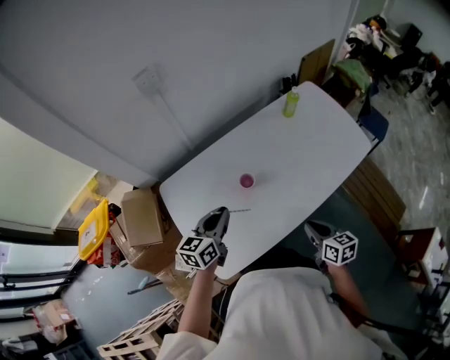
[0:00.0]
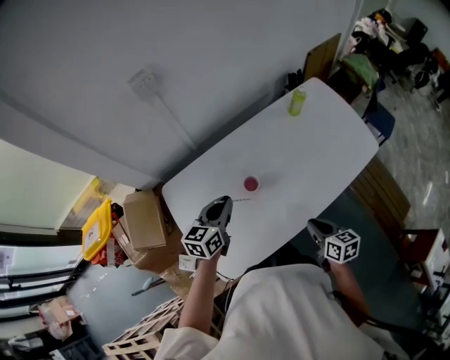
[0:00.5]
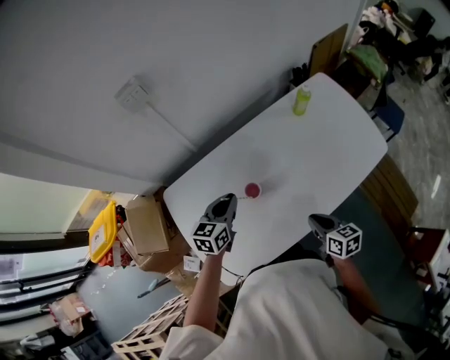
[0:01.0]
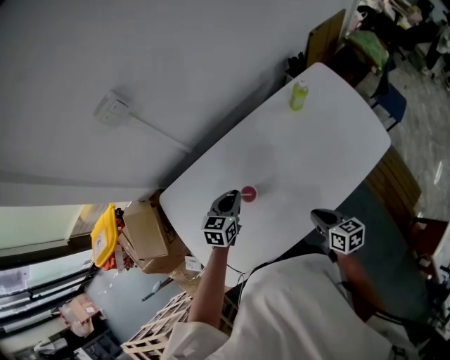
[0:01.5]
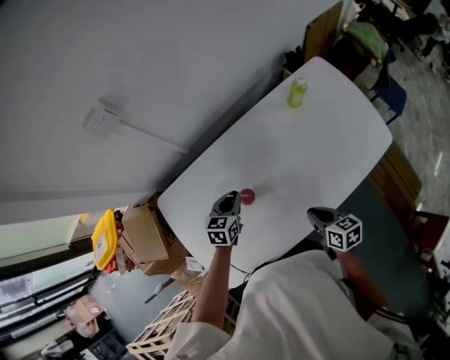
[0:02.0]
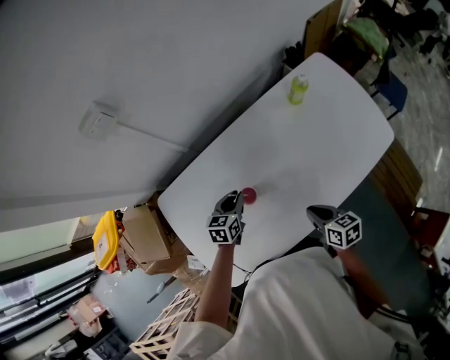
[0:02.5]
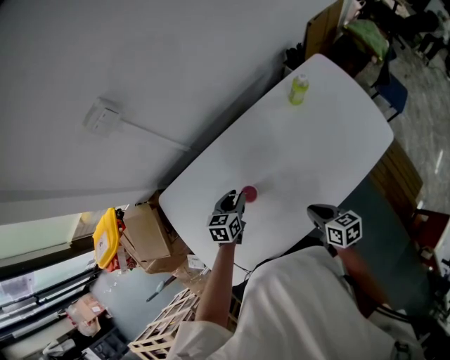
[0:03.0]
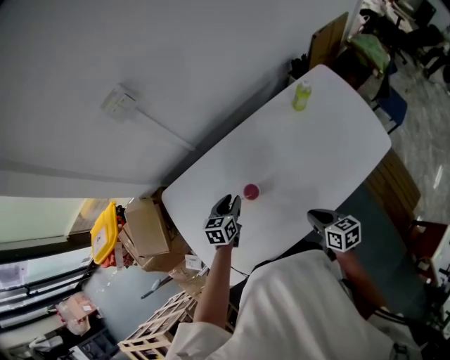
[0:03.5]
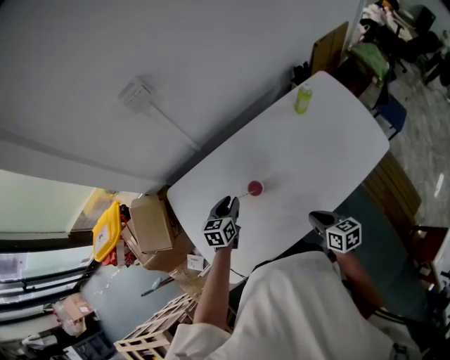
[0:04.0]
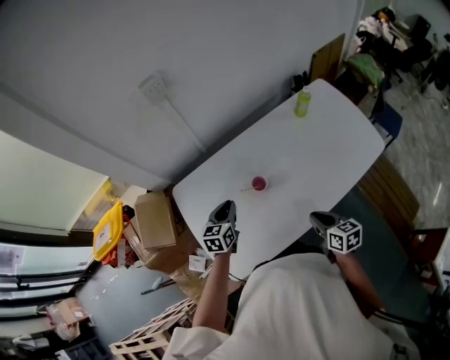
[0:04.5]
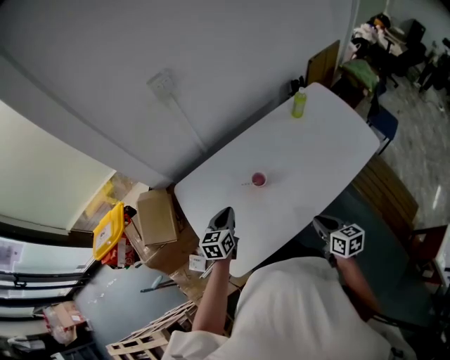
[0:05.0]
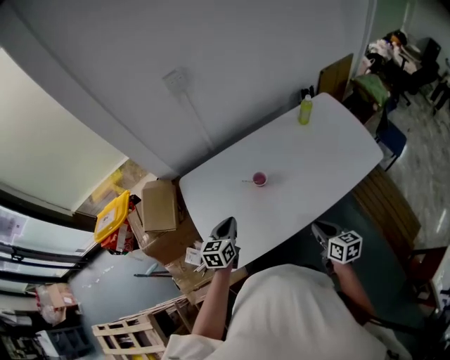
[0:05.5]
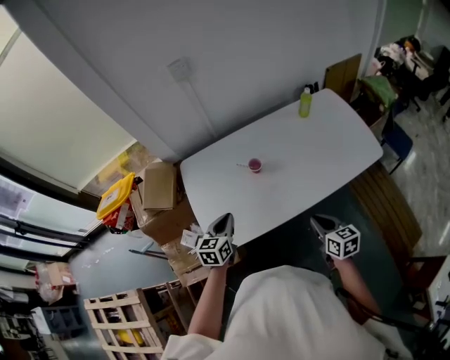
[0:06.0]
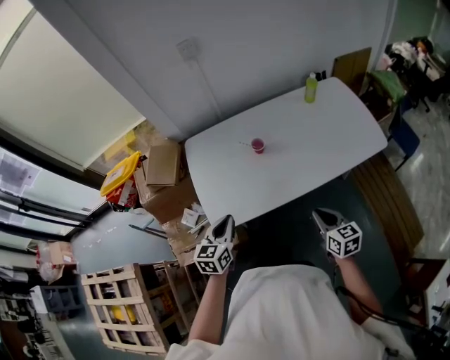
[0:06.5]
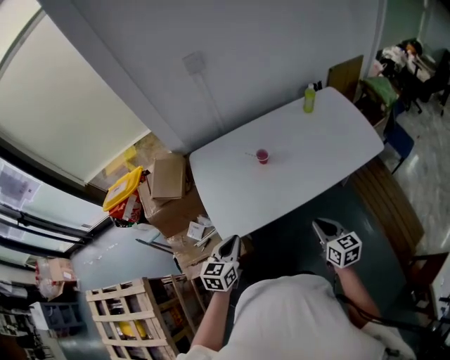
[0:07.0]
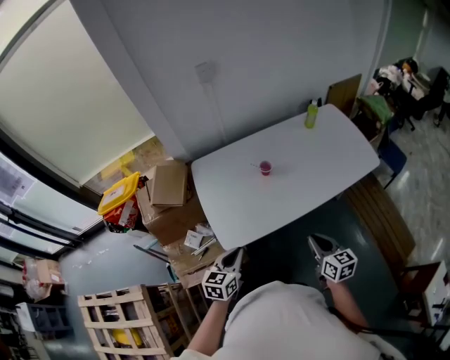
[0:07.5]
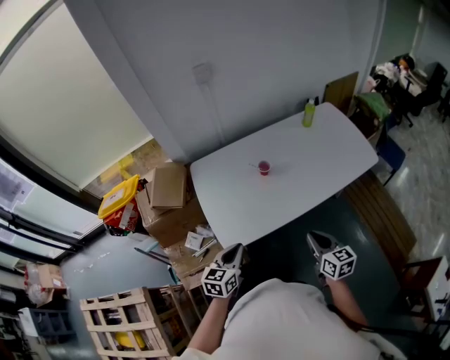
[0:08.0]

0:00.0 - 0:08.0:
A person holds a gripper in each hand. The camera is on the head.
0:00.0 - 0:02.0: The left gripper goes about 20 cm downward, forward and to the right, and changes its angle by about 20 degrees. The right gripper is displaced forward and downward by about 15 cm.
0:02.0 - 0:04.0: The left gripper heads to the left, covering about 5 cm; the right gripper changes place by approximately 5 cm.
0:04.0 - 0:06.0: The left gripper travels backward by about 25 cm, and closes. The right gripper moves backward, roughly 15 cm.
0:06.0 - 0:08.0: The left gripper is displaced backward by roughly 15 cm, while the right gripper moves to the left and backward, approximately 10 cm.

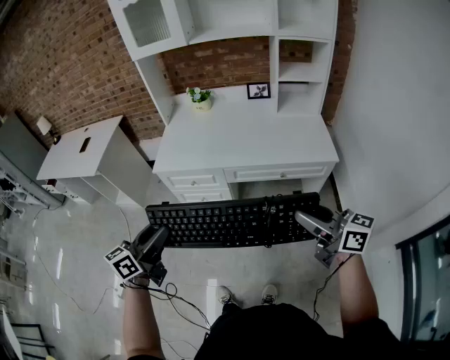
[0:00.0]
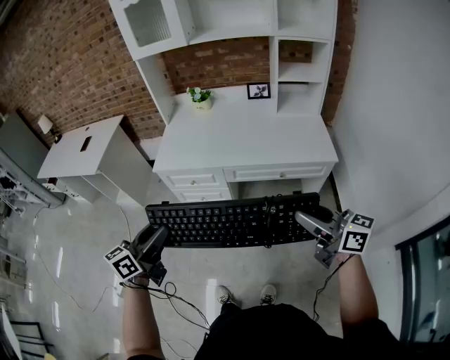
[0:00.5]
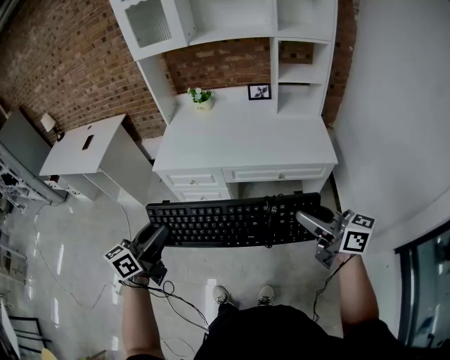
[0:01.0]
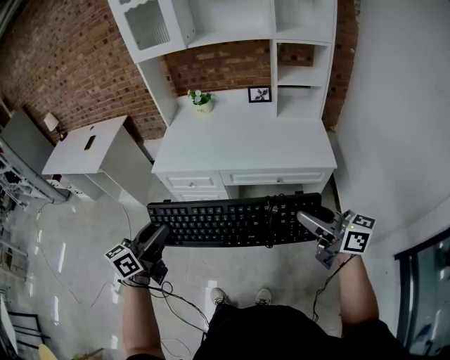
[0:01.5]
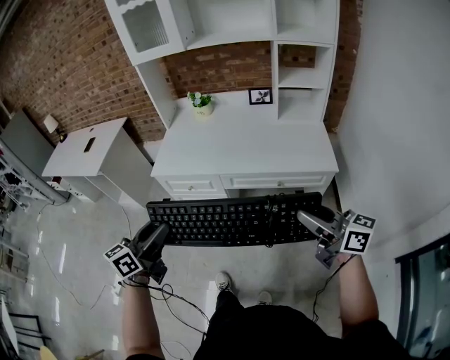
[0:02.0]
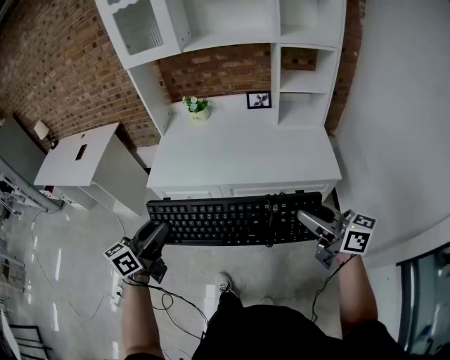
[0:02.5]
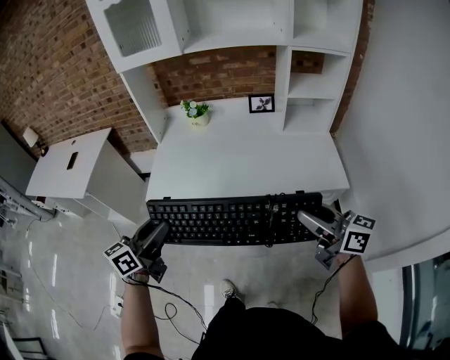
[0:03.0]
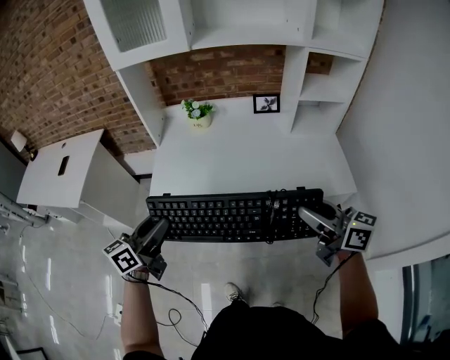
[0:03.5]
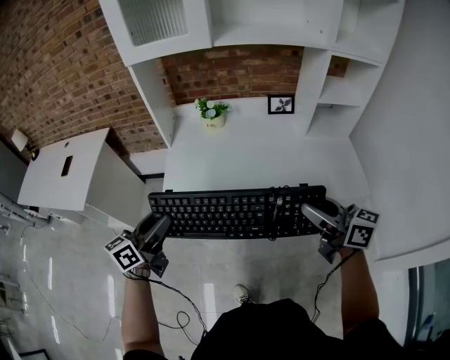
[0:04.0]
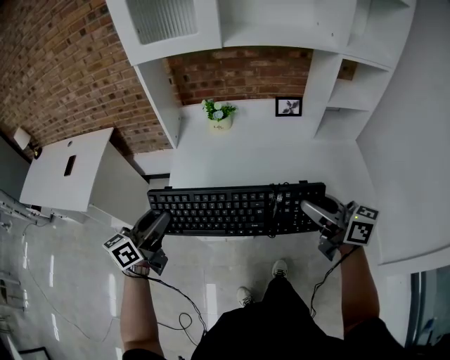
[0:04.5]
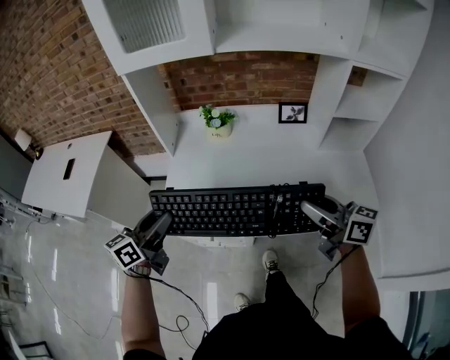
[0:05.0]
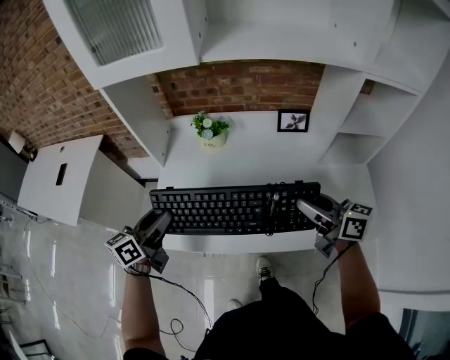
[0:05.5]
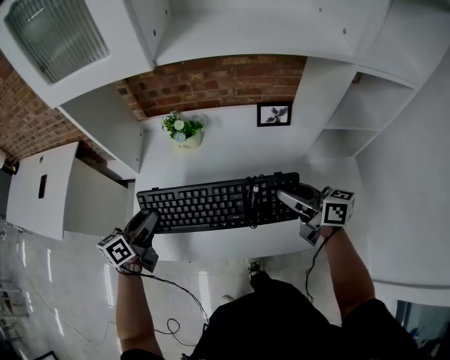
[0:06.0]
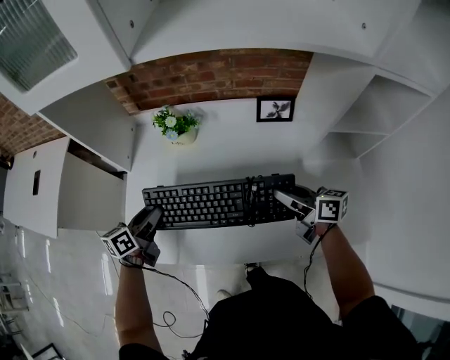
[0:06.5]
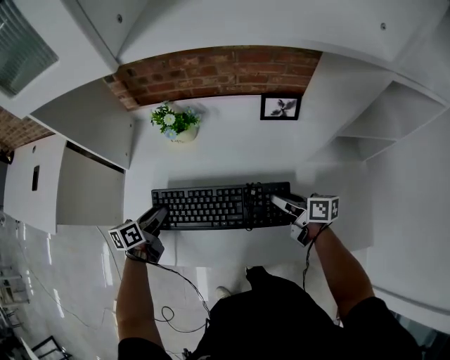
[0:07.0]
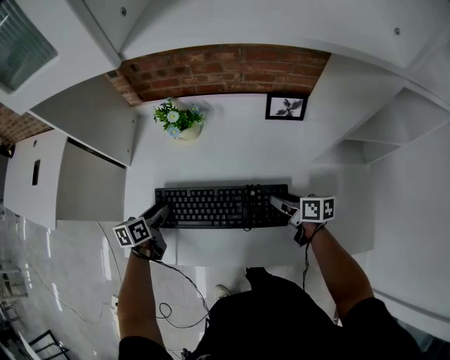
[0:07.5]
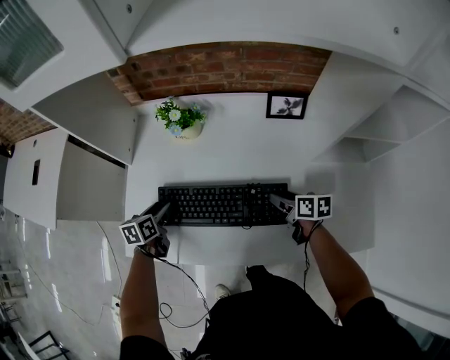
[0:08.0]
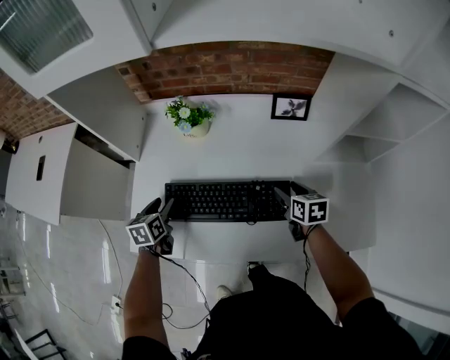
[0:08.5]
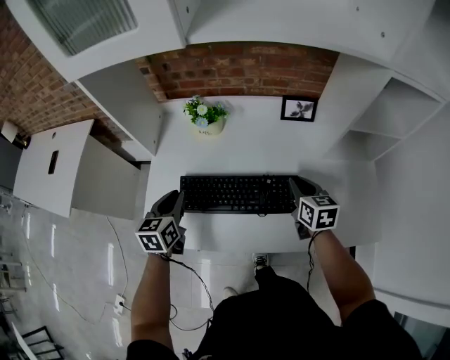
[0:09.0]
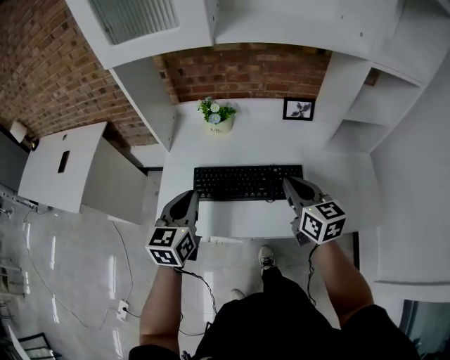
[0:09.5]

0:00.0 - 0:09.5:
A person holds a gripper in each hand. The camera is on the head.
0:00.0 - 0:02.0: The two grippers keep their place.
0:02.0 - 0:04.0: The two grippers go approximately 35 cm forward and to the left.
0:04.0 - 0:05.5: Both grippers move forward, about 20 cm.
0:05.5 - 0:07.5: Both grippers move downward, about 20 cm. The left gripper rotates some 30 degrees. The right gripper turns by roughly 30 degrees.
0:07.5 - 0:09.5: The right gripper shifts some 25 cm upward, to the left and backward, turns by approximately 40 degrees, and closes its fingers. The left gripper travels upward and backward by some 25 cm, changes its angle by some 40 degrees, and closes its fingers.

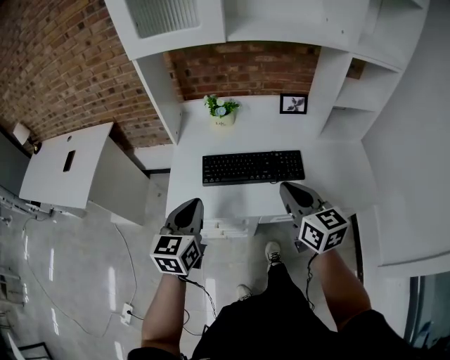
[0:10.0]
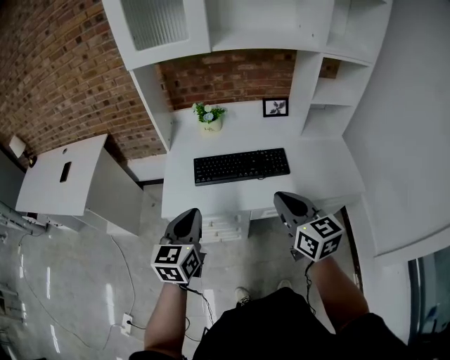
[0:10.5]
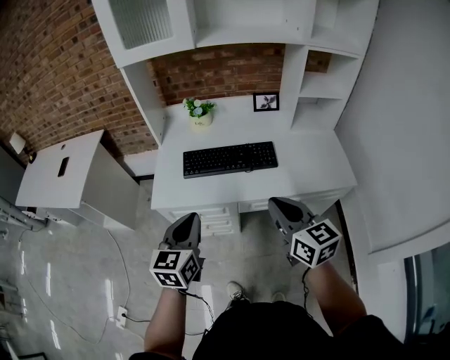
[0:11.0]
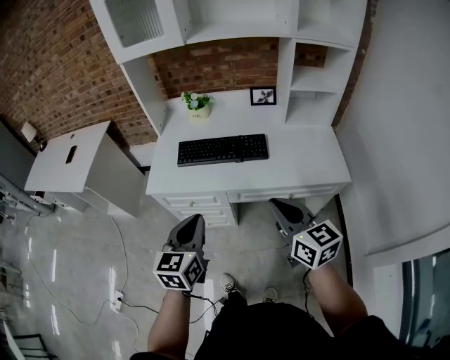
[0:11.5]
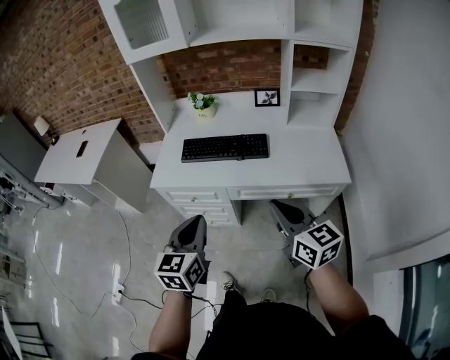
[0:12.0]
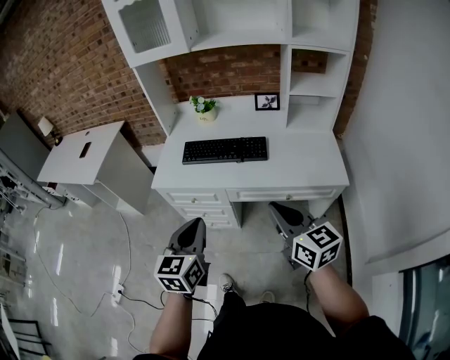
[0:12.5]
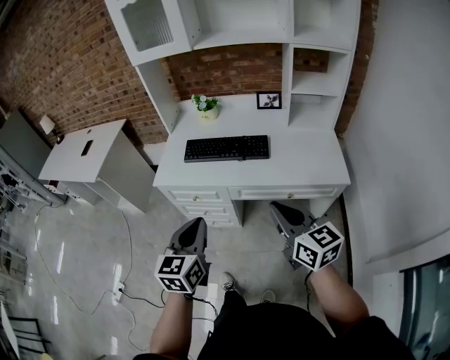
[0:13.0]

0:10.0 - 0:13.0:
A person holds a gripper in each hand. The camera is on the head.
0:10.0 - 0:11.5: Both grippers travel together backward and to the right, approximately 25 cm.
0:11.5 - 0:13.0: Both grippers travel together backward, about 5 cm.

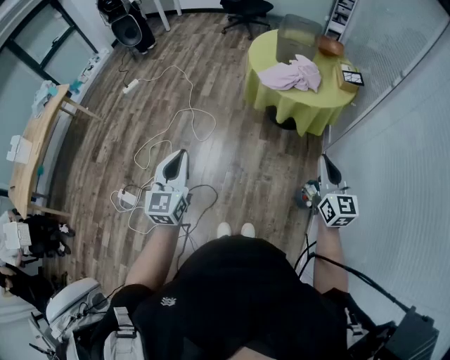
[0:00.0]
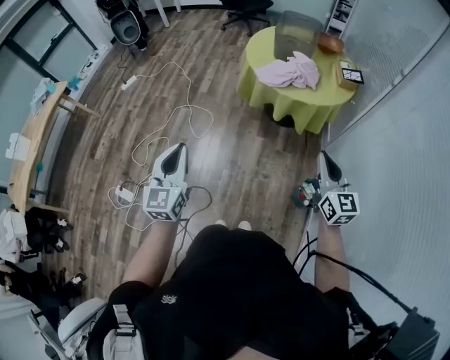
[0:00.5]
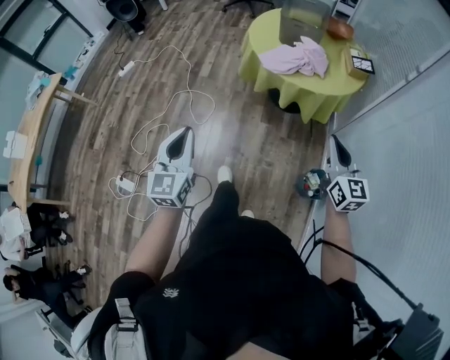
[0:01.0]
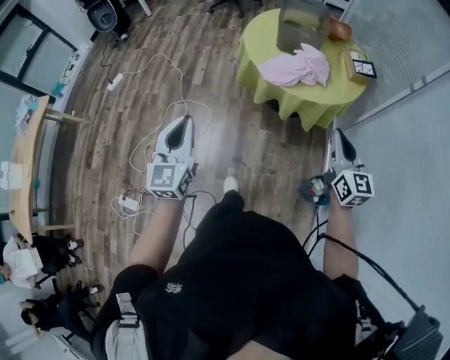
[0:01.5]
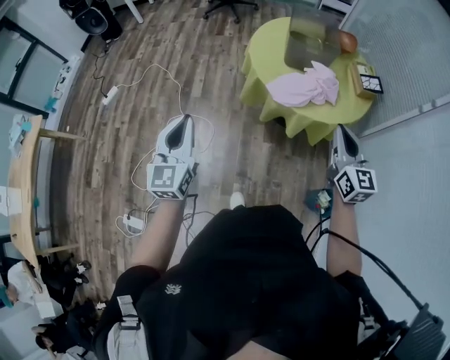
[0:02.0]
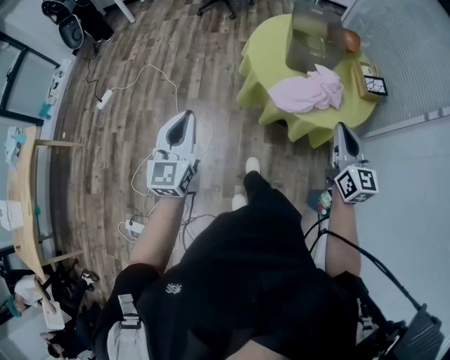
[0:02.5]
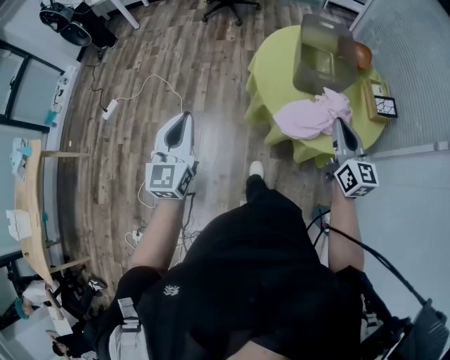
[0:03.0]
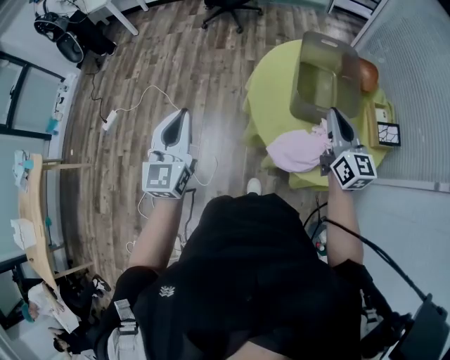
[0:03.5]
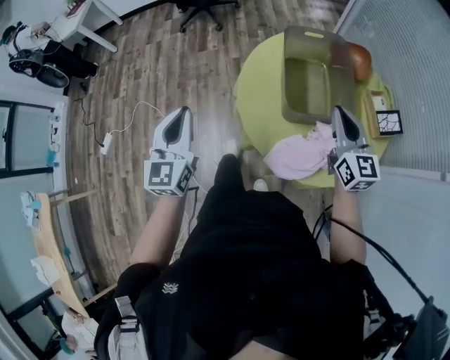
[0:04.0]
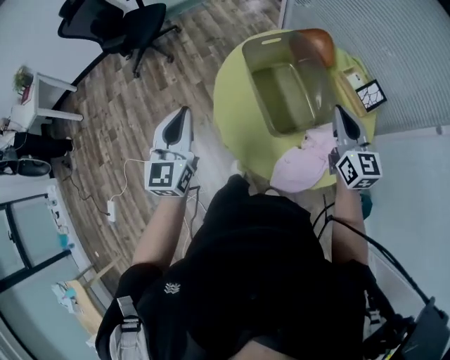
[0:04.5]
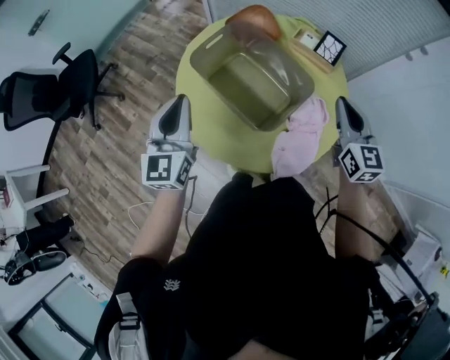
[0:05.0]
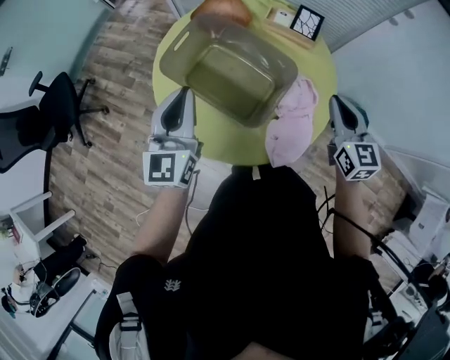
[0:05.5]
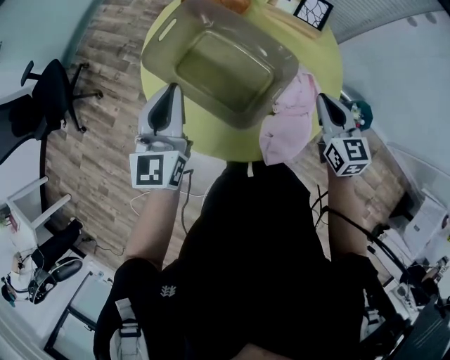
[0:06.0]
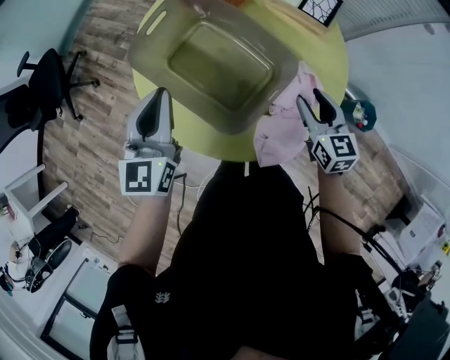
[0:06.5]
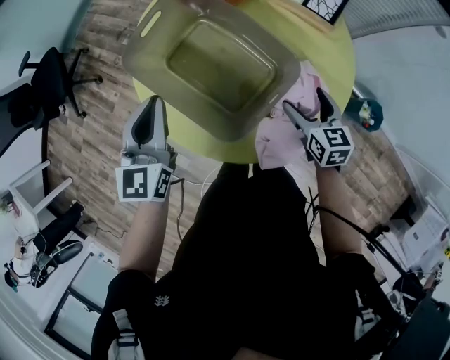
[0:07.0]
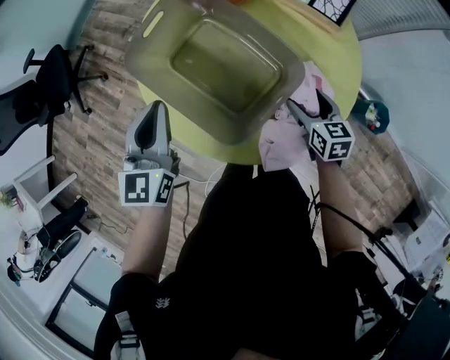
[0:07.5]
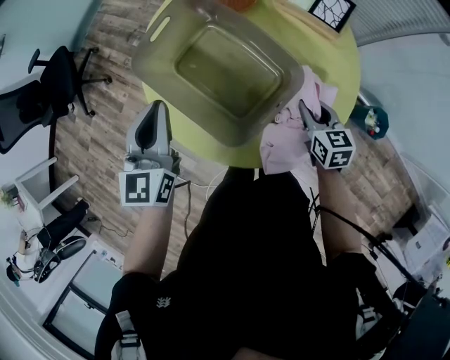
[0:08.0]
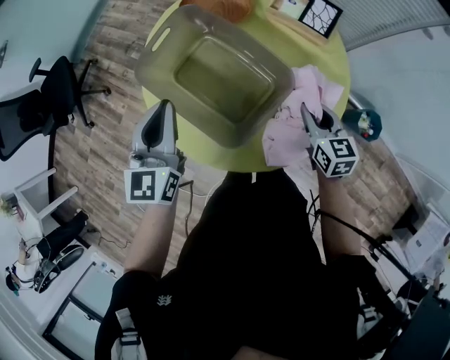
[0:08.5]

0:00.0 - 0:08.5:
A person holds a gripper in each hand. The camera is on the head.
0:00.0 - 0:02.0: The two grippers go approximately 35 cm forward.
0:02.0 - 0:04.0: The two grippers travel together, forward, approximately 50 cm.
0:04.0 - 0:06.5: The left gripper ends up roughly 40 cm from where it was, and changes its angle by approximately 50 degrees. The right gripper goes approximately 20 cm downward, turns by approximately 50 degrees, and opens up.
0:06.5 - 0:08.5: The right gripper goes downward and returns, roughly 10 cm each way, and opens and closes again.
